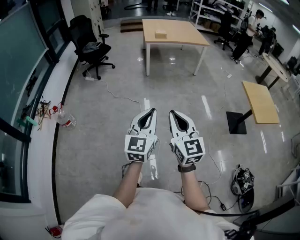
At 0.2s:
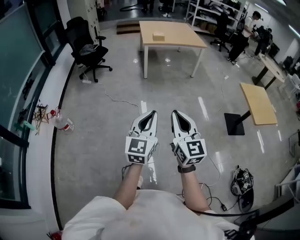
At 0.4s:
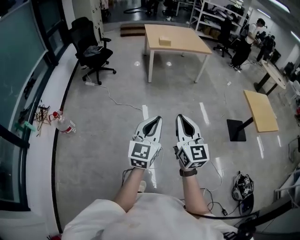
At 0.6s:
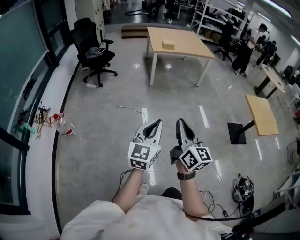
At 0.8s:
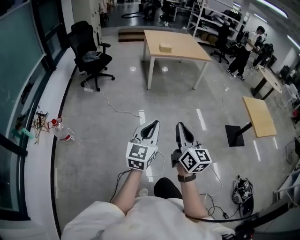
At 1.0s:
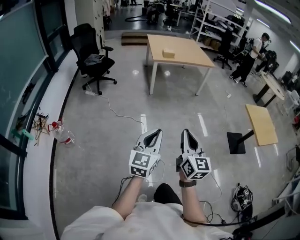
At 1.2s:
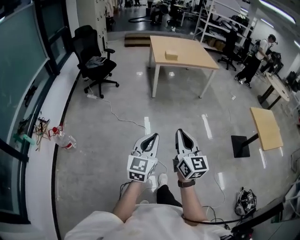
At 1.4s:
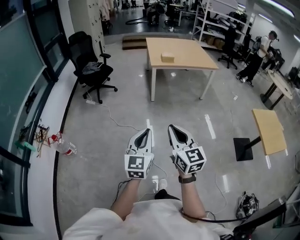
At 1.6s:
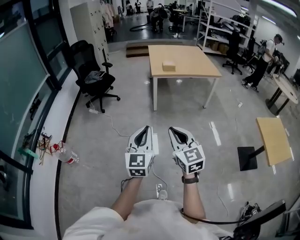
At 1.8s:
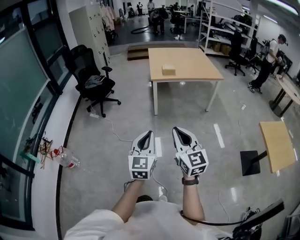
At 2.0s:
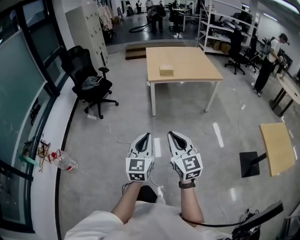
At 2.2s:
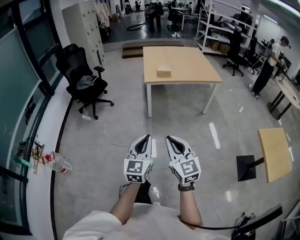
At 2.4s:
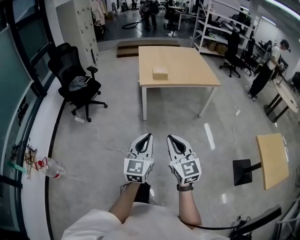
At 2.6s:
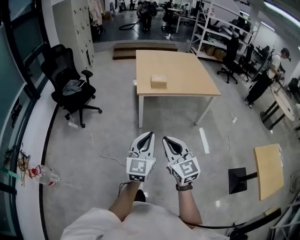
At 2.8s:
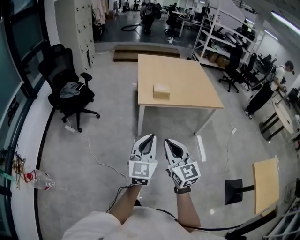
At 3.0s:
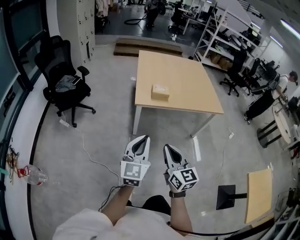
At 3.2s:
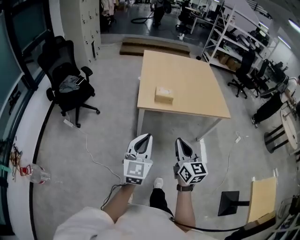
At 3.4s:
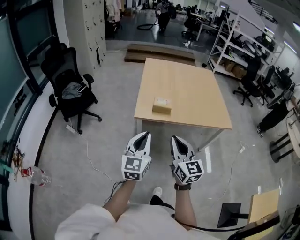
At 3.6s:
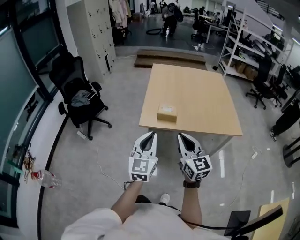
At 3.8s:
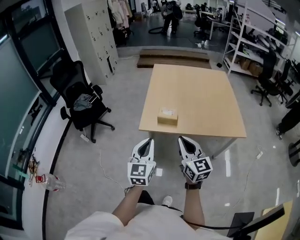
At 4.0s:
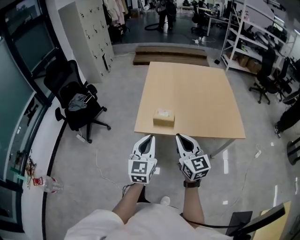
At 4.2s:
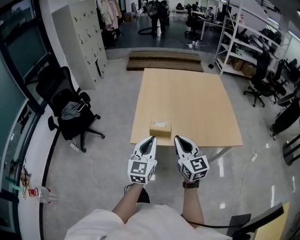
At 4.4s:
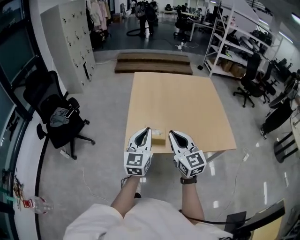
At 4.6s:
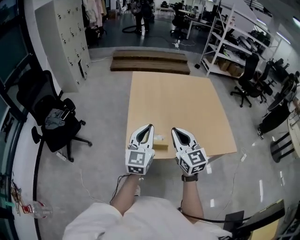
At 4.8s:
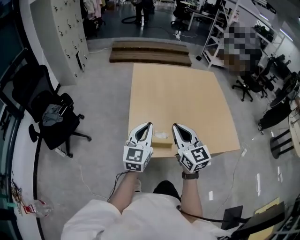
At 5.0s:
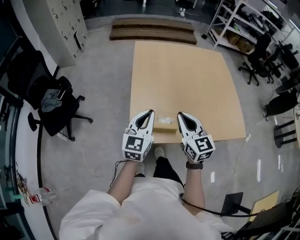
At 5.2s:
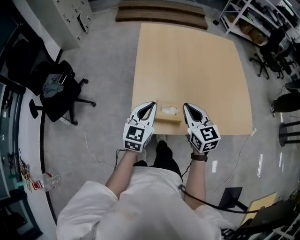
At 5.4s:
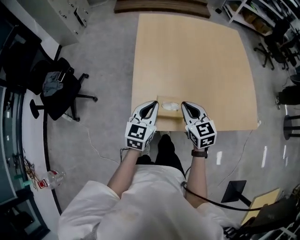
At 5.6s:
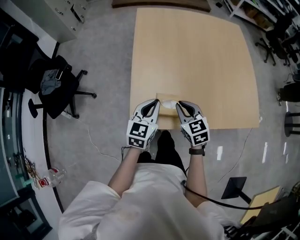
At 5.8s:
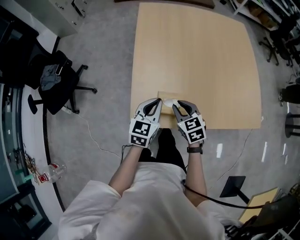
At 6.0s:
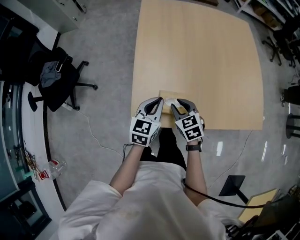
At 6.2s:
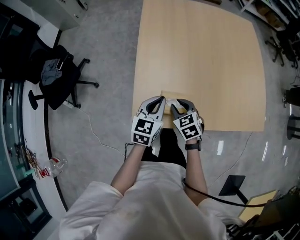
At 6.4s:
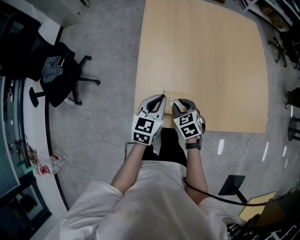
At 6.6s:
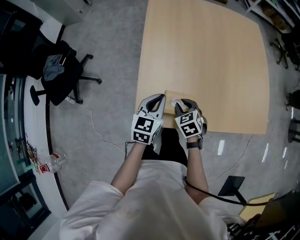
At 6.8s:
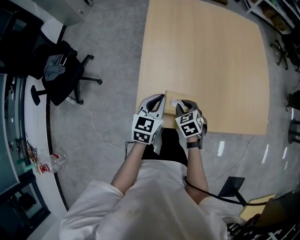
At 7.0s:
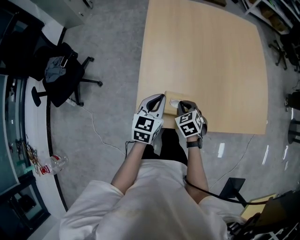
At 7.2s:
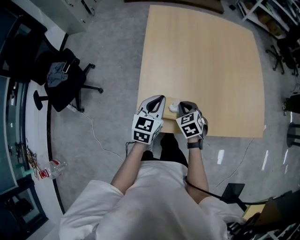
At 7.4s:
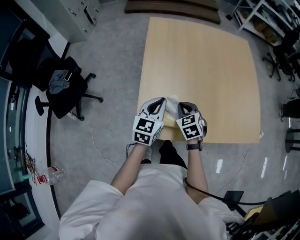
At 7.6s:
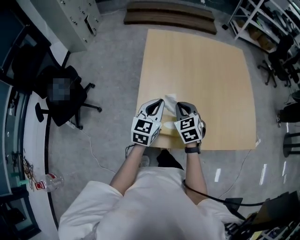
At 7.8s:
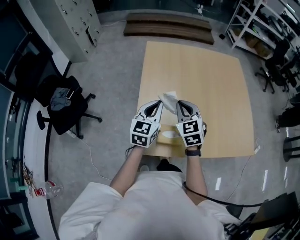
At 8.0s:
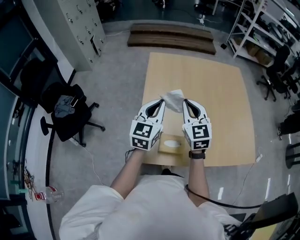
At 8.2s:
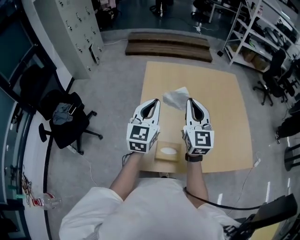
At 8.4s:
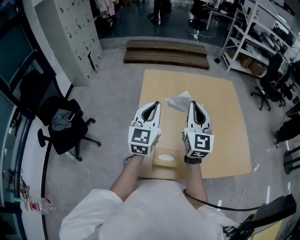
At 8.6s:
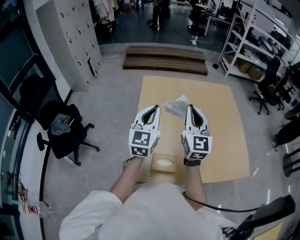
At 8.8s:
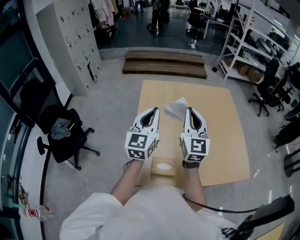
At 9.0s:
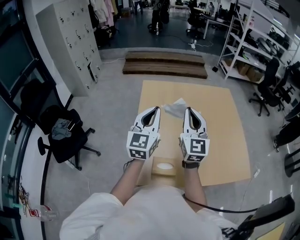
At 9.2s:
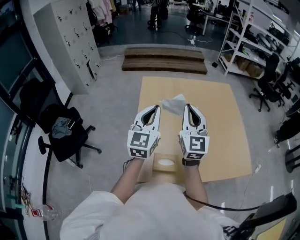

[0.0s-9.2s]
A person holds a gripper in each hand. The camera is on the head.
0.0s to 1.6s: Both grippers move forward, some 35 cm.
1.6s to 3.0s: Both grippers are carried forward, roughly 50 cm.
3.0s to 4.6s: Both grippers are carried forward, about 50 cm.
4.6s to 6.2s: Both grippers travel together downward and forward, about 35 cm. The left gripper changes its angle by some 30 degrees. Meanwhile the right gripper points its fingers roughly 40 degrees further downward, and opens.
6.2s to 7.6s: The right gripper goes about 15 cm upward and forward, and closes, while the left gripper is displaced upward by some 10 cm.
7.6s to 9.2s: The two grippers go some 20 cm upward. The left gripper rotates some 20 degrees; the right gripper points its fingers some 50 degrees further upward.

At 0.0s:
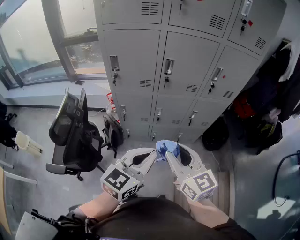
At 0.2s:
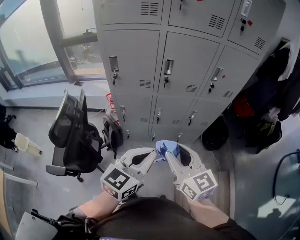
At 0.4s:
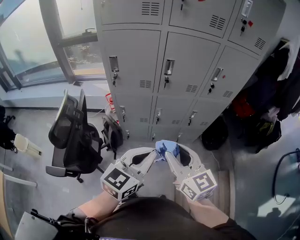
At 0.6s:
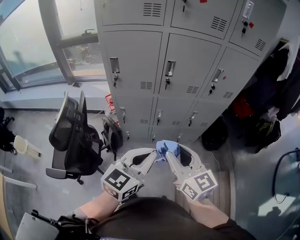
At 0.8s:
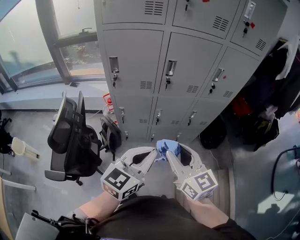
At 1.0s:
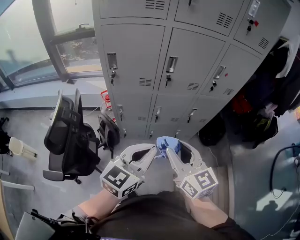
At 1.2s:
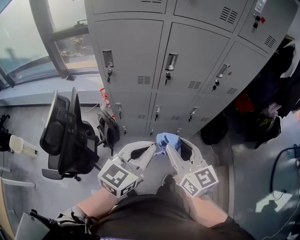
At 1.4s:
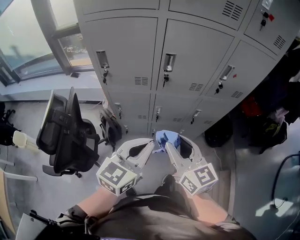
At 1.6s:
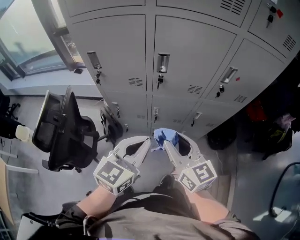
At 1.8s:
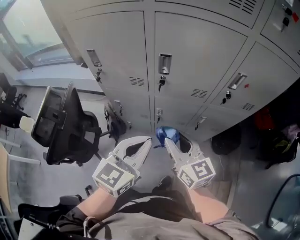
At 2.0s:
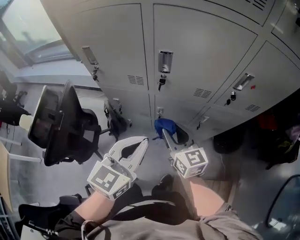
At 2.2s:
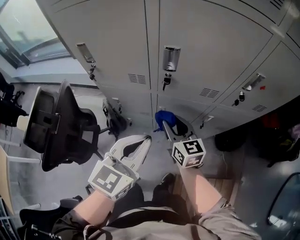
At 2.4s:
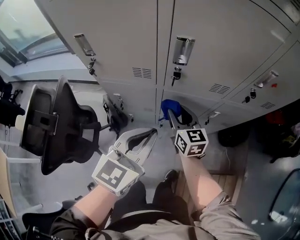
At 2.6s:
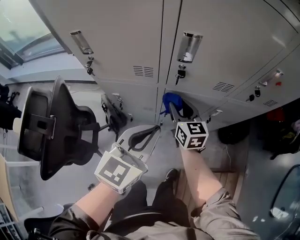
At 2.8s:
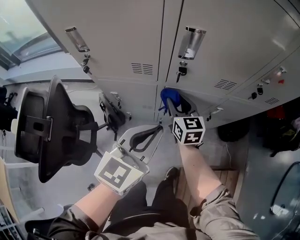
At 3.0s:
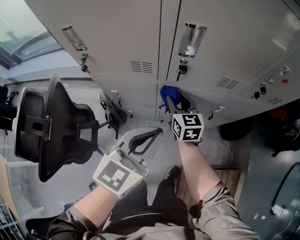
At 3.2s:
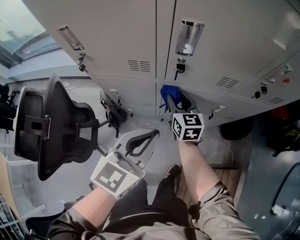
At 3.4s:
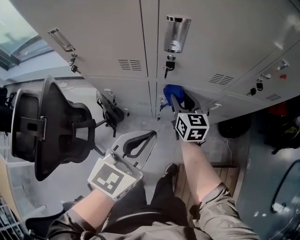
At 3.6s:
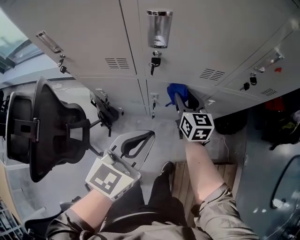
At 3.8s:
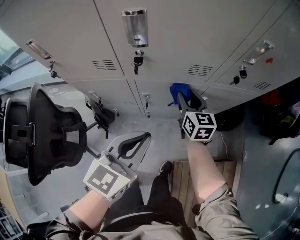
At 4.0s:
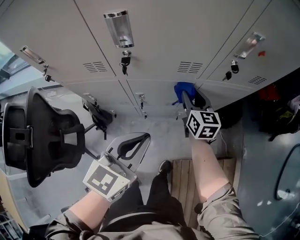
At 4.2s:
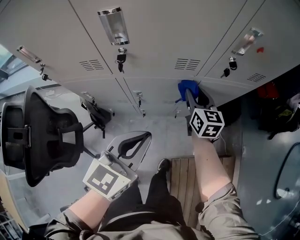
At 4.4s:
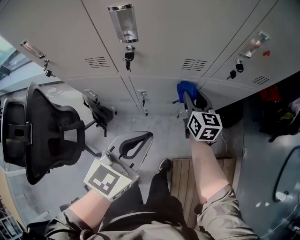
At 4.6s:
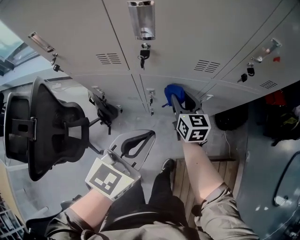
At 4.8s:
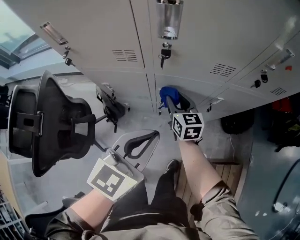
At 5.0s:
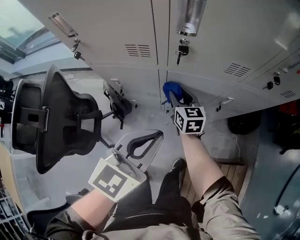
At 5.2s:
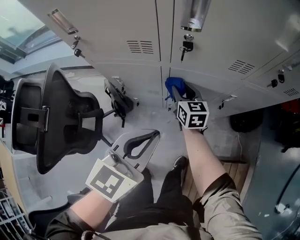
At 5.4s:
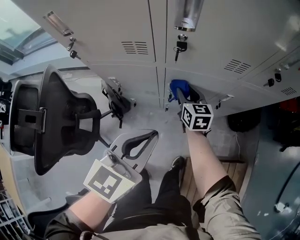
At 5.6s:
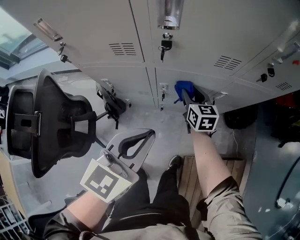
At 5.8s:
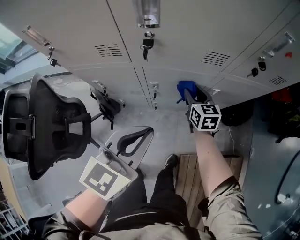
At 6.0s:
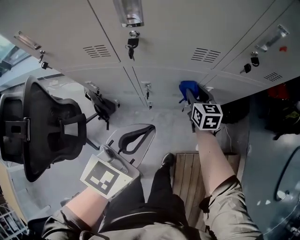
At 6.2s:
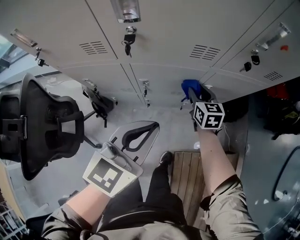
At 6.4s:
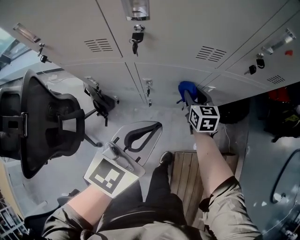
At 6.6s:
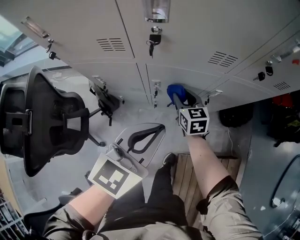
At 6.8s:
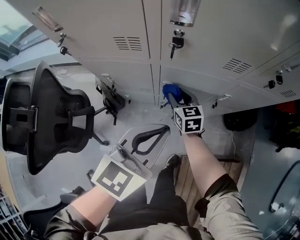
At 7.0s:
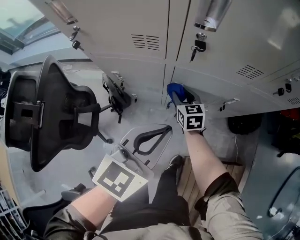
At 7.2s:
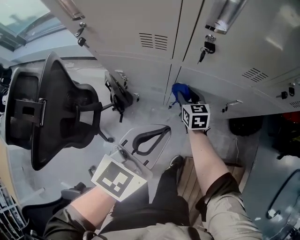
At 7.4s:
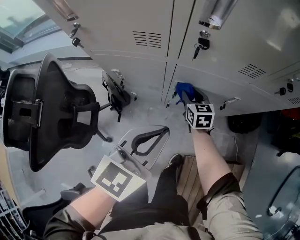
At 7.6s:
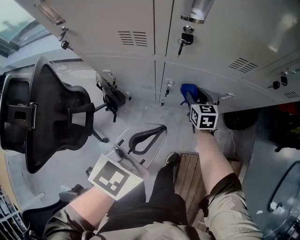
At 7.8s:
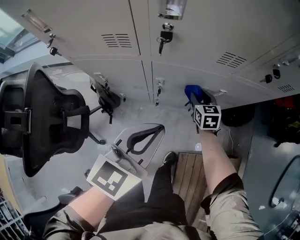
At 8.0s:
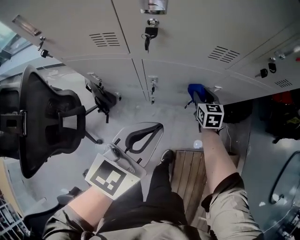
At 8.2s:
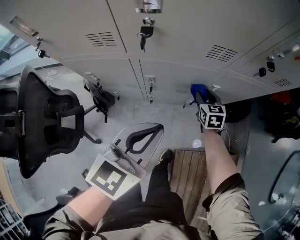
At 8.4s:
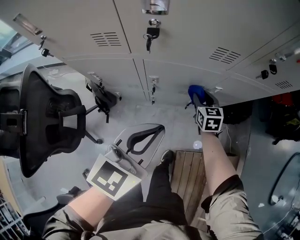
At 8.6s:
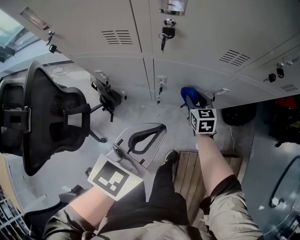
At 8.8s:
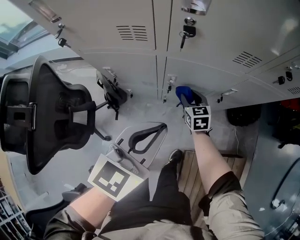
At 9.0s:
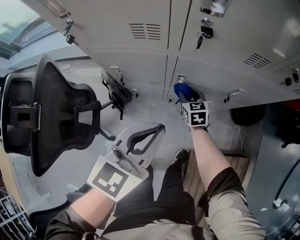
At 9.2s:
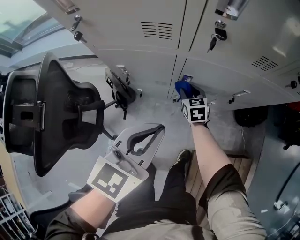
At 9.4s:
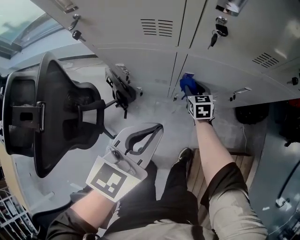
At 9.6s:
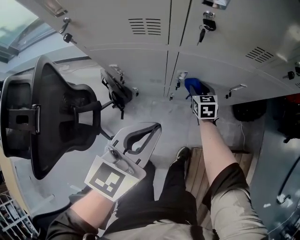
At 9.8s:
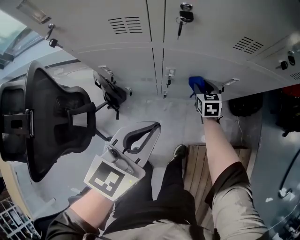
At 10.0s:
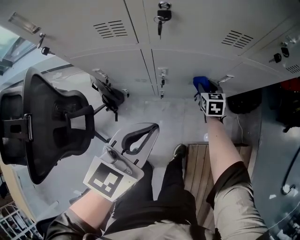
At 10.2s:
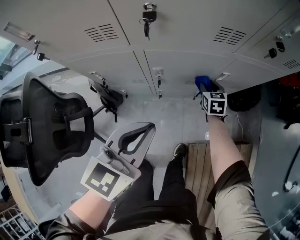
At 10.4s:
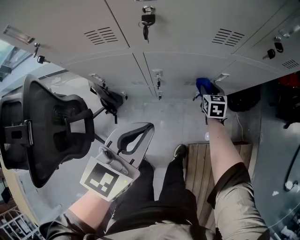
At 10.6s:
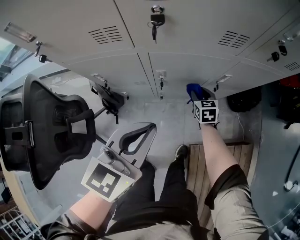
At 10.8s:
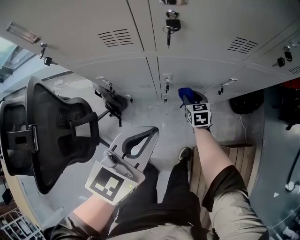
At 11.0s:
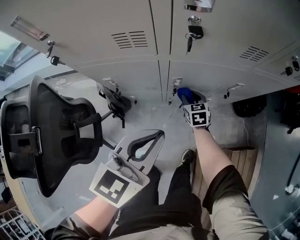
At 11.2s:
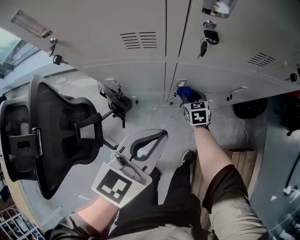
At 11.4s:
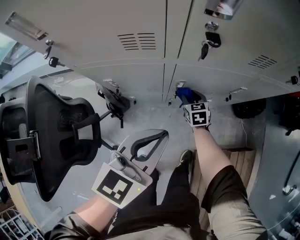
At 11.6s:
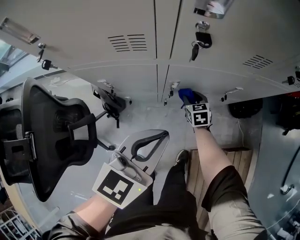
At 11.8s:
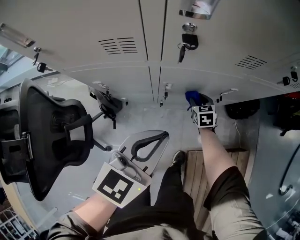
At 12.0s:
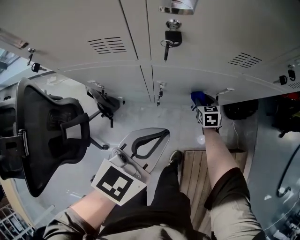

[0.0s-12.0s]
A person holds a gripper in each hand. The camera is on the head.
0.0s to 1.6s: Both grippers travel together forward, roughly 15 cm.
1.6s to 3.0s: The left gripper heads forward and downward, covering roughly 15 cm. The right gripper goes some 35 cm forward and downward.
3.0s to 4.4s: The left gripper travels to the right by about 10 cm; the right gripper is displaced to the right by roughly 20 cm.
4.4s to 6.0s: The left gripper reaches roughly 10 cm to the left, then returns. The right gripper moves downward, roughly 10 cm, and travels to the left and back again, roughly 20 cm each way.
6.0s to 7.6s: The left gripper travels to the left by some 5 cm; the right gripper shifts some 10 cm to the left and downward.
7.6s to 9.0s: The right gripper heads to the left, covering about 5 cm.
9.0s to 10.4s: The right gripper travels to the right by approximately 20 cm.
10.4s to 12.0s: The right gripper travels downward by some 5 cm, and reaches approximately 20 cm to the left, then returns.

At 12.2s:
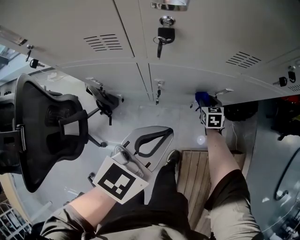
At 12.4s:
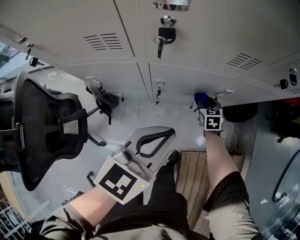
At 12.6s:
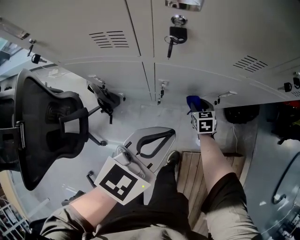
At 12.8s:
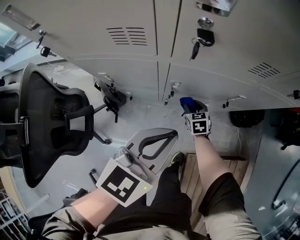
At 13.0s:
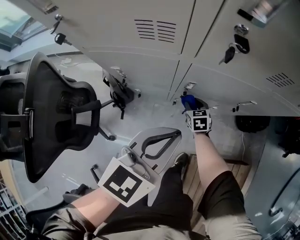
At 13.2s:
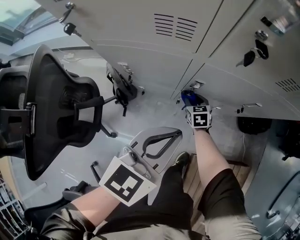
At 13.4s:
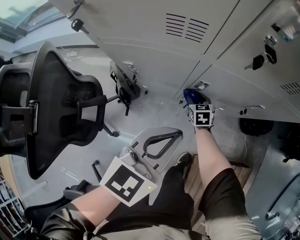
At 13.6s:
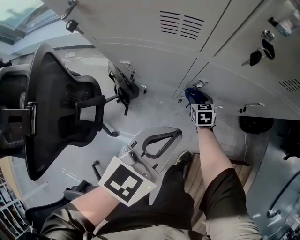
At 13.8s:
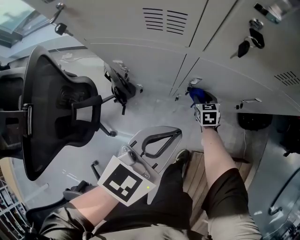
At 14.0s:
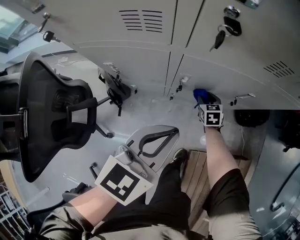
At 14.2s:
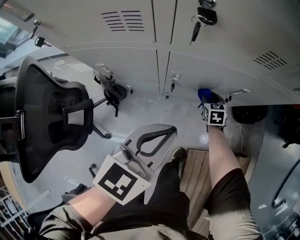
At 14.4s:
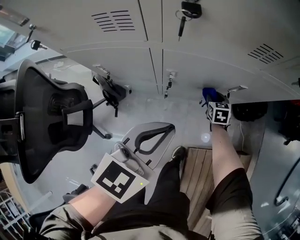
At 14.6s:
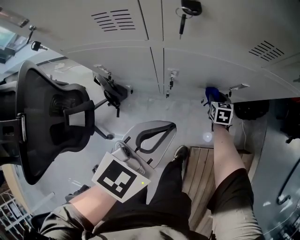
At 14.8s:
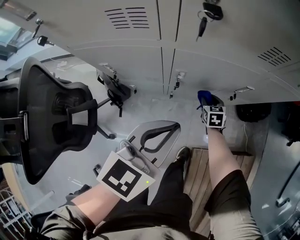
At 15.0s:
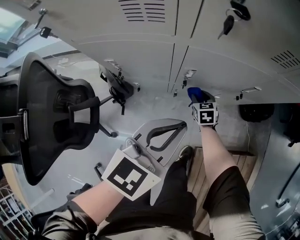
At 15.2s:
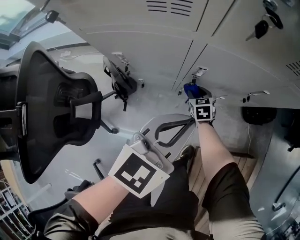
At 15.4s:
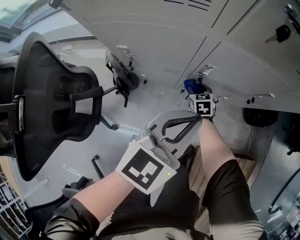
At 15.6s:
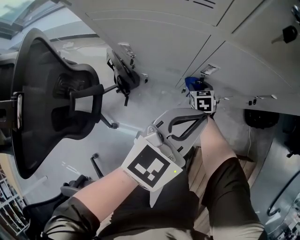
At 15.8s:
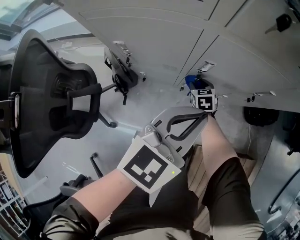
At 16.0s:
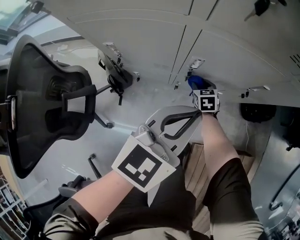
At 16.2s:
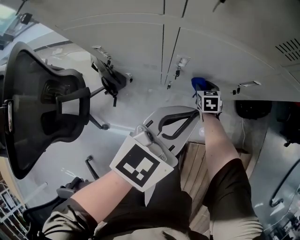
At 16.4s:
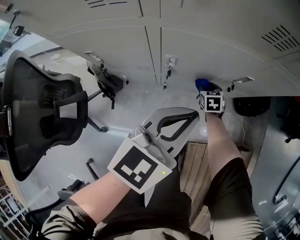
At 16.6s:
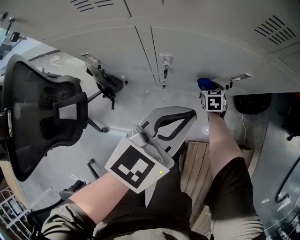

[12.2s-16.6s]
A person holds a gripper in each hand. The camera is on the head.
12.2s to 13.6s: The right gripper travels to the left by some 20 cm. The left gripper travels to the left by roughly 10 cm.
13.6s to 15.2s: The right gripper moves about 20 cm to the right and comes back.
15.2s to 16.6s: The right gripper is displaced to the right by roughly 20 cm; the left gripper shifts about 10 cm to the right.
